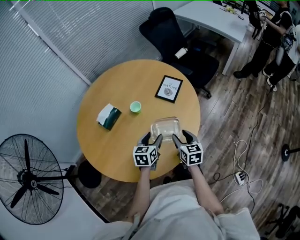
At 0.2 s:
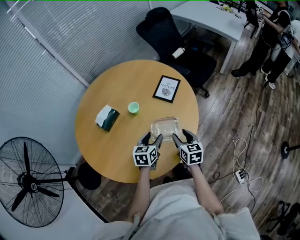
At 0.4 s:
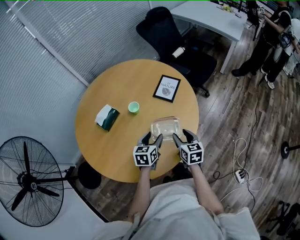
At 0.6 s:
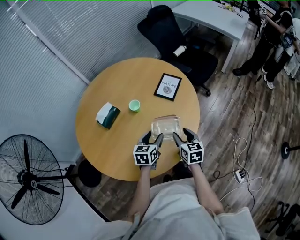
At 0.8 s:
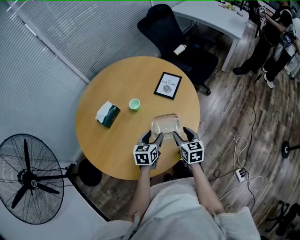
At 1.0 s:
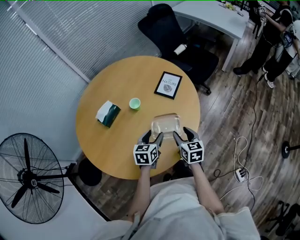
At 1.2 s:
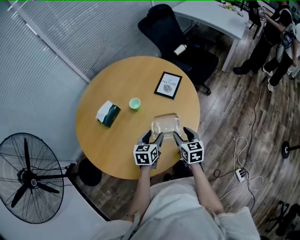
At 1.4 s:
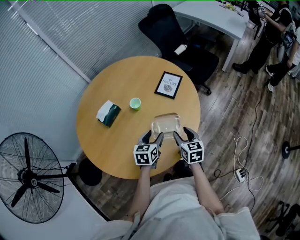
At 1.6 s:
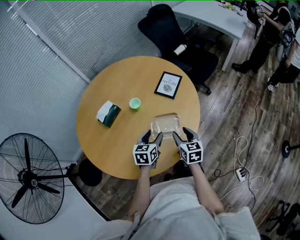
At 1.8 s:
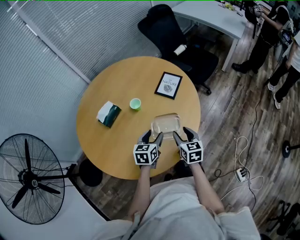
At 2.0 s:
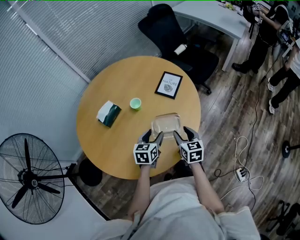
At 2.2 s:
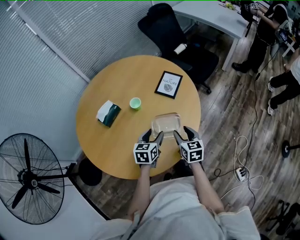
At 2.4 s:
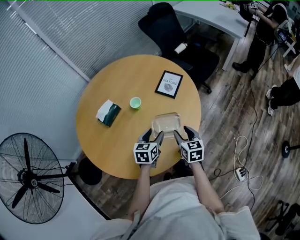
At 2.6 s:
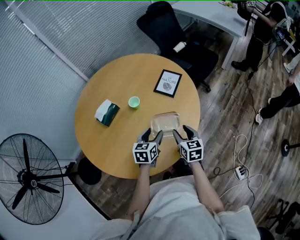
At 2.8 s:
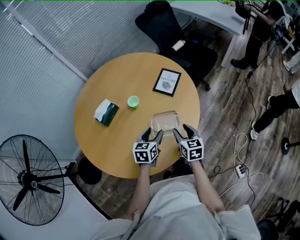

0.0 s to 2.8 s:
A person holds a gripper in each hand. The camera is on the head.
0.0 to 2.8 s: Both grippers stay put.

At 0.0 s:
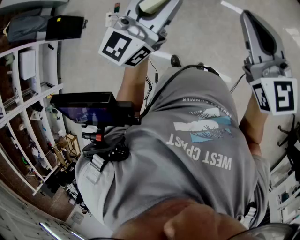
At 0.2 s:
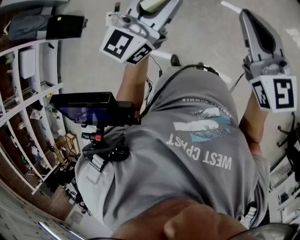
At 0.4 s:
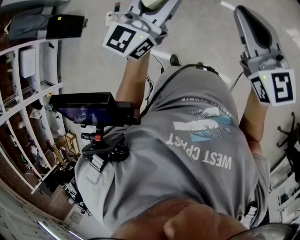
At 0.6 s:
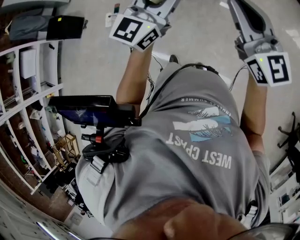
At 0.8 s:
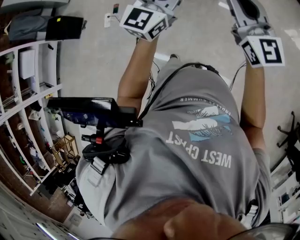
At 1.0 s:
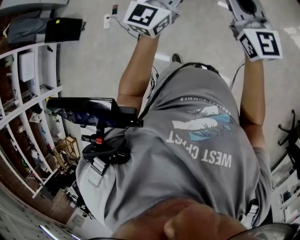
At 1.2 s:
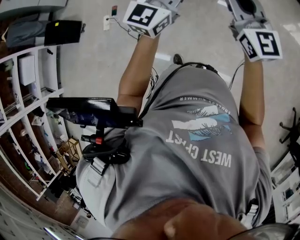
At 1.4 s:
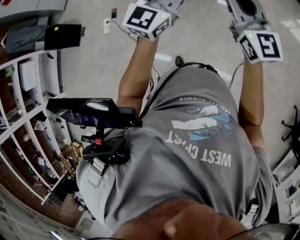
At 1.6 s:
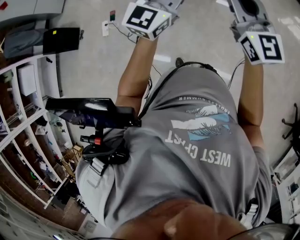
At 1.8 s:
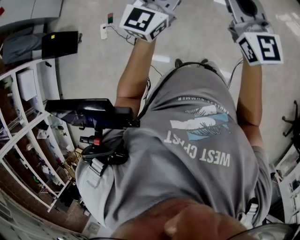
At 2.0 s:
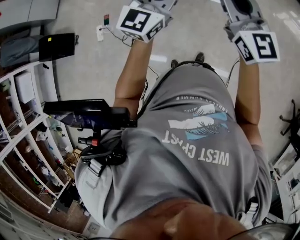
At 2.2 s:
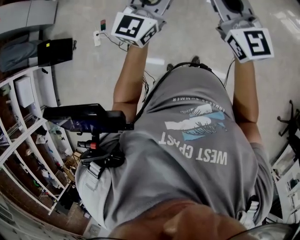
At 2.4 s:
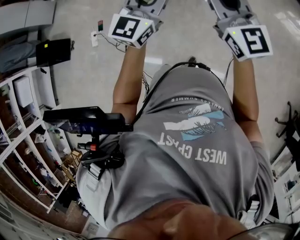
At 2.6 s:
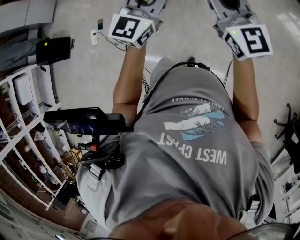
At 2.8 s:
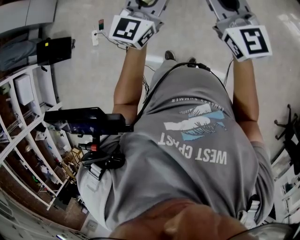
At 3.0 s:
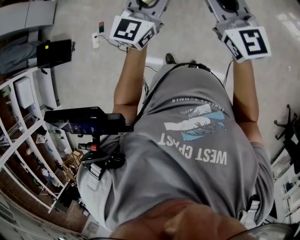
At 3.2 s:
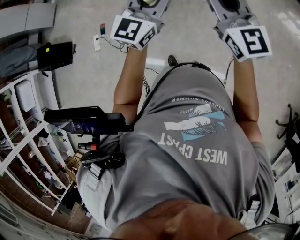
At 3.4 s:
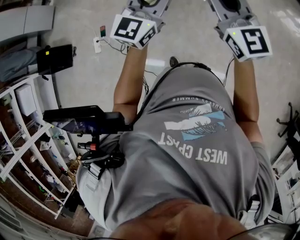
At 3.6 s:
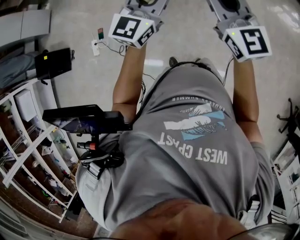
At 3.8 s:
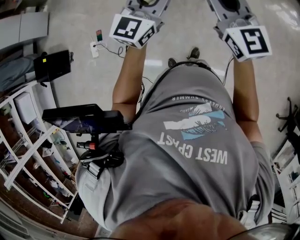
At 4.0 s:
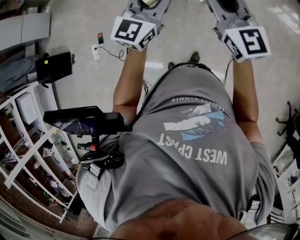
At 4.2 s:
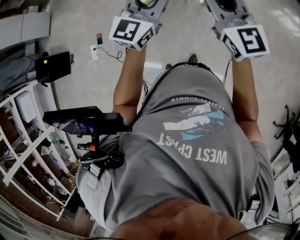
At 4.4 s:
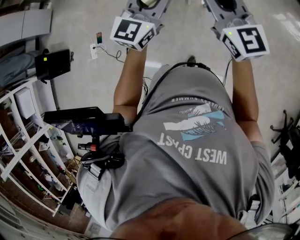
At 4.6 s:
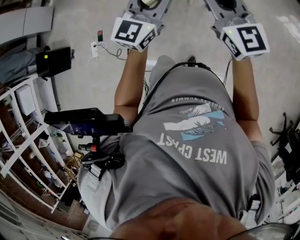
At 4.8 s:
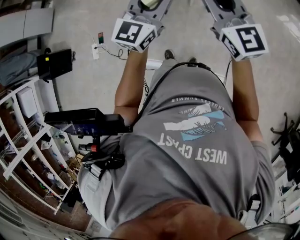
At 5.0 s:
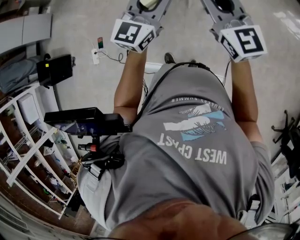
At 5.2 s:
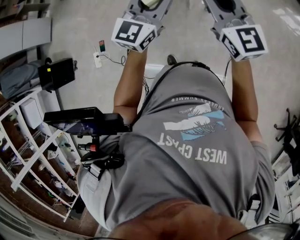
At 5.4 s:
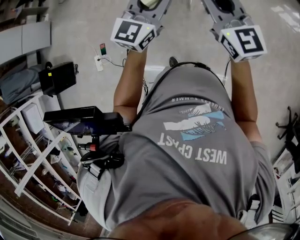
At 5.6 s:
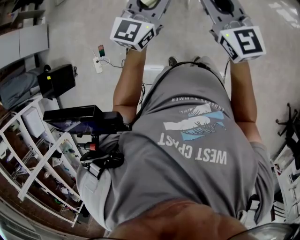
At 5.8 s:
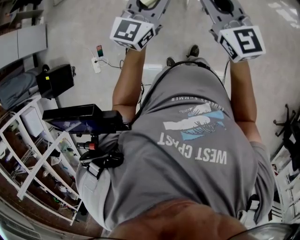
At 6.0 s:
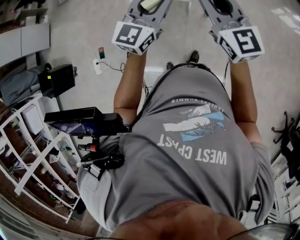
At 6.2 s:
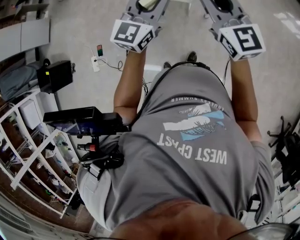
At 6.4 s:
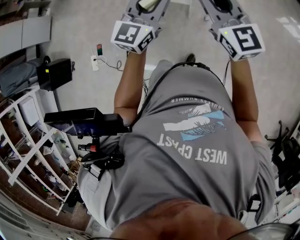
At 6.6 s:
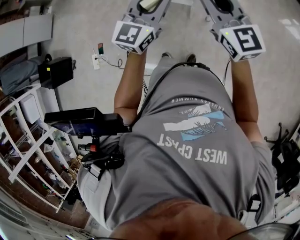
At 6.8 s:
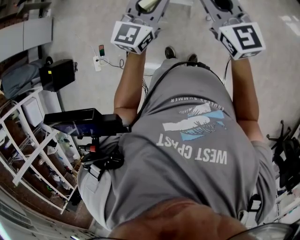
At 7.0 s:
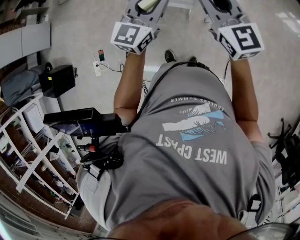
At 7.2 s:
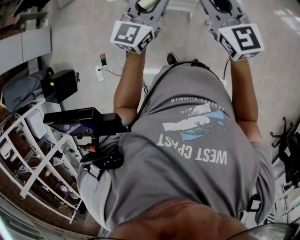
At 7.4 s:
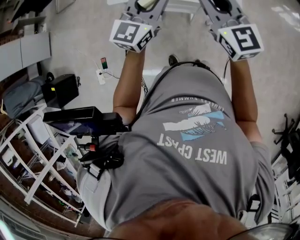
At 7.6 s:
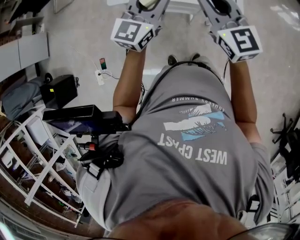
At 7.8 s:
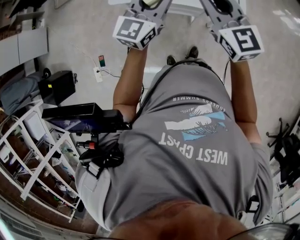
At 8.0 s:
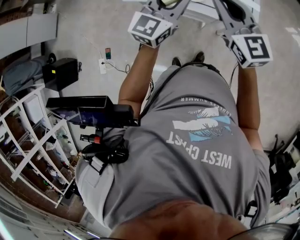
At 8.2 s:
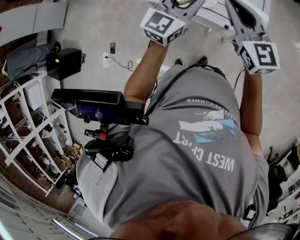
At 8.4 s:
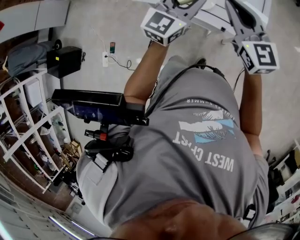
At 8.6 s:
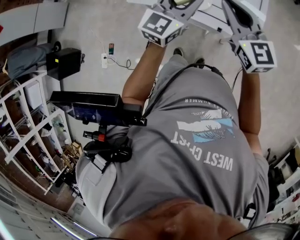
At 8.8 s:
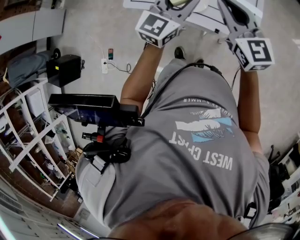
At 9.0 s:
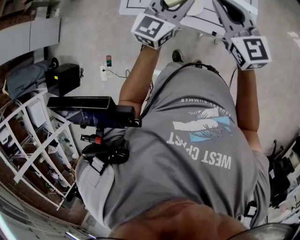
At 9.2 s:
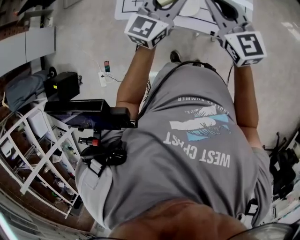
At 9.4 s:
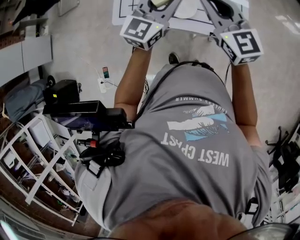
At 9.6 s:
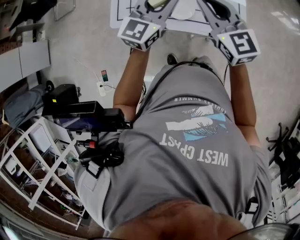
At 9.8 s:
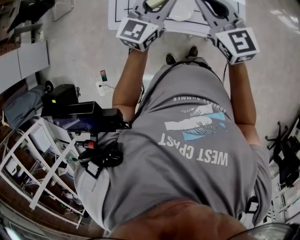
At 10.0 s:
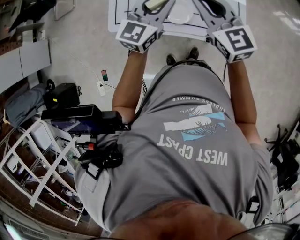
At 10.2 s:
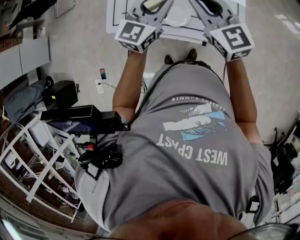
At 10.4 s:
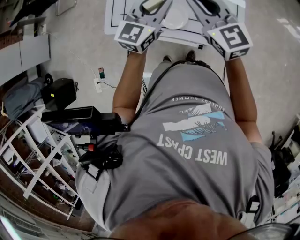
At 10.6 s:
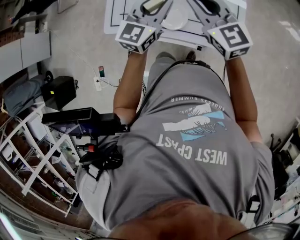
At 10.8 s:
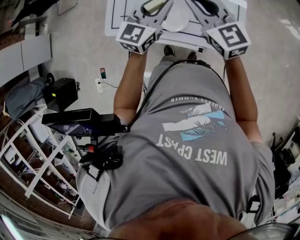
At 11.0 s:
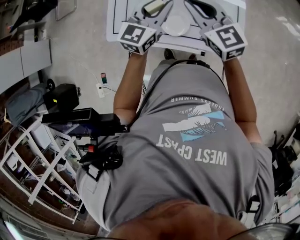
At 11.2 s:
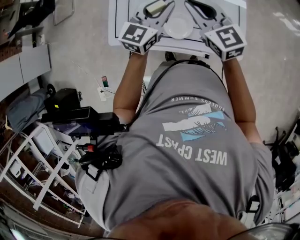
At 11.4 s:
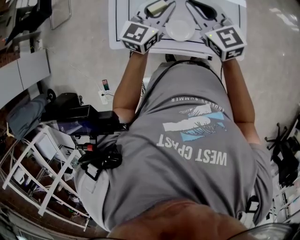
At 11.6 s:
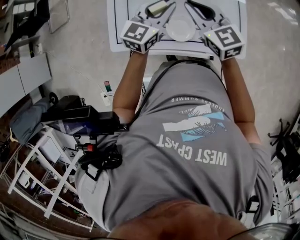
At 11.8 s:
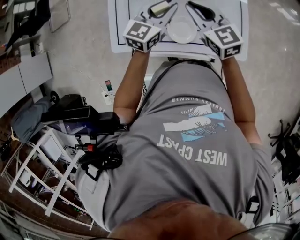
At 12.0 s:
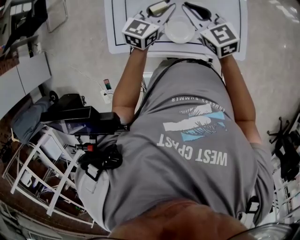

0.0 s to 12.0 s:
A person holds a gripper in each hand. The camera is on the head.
0.0 to 1.6 s: The right gripper shifts about 15 cm forward and to the left. Meanwhile the left gripper is displaced forward and downward by some 15 cm.
1.6 to 3.0 s: The right gripper shifts approximately 15 cm forward. The left gripper heads forward and to the right, covering approximately 15 cm.
3.0 to 4.4 s: Both grippers travel together forward, roughly 15 cm.
4.4 to 6.0 s: Both grippers move forward, some 15 cm.
6.0 to 7.6 s: The two grippers go roughly 15 cm forward.
7.6 to 9.0 s: The left gripper goes roughly 15 cm forward and to the right. Meanwhile the right gripper travels forward by about 10 cm.
9.0 to 10.4 s: Both grippers travel together forward, approximately 10 cm.
10.4 to 12.0 s: Both grippers travel together downward and forward, about 15 cm.

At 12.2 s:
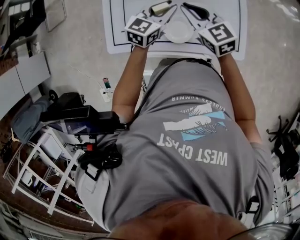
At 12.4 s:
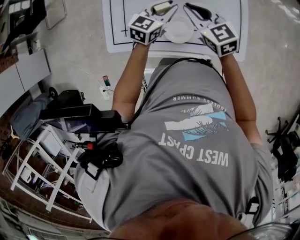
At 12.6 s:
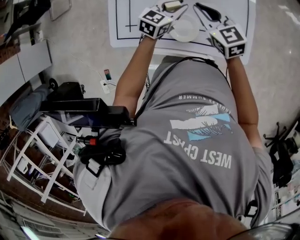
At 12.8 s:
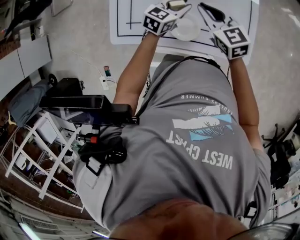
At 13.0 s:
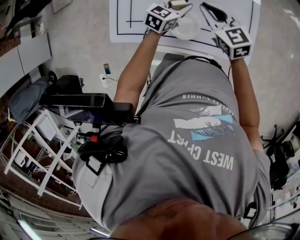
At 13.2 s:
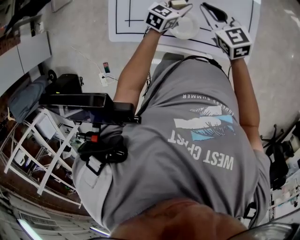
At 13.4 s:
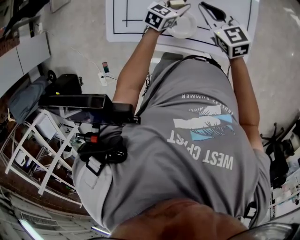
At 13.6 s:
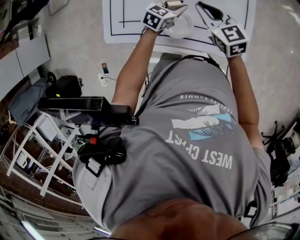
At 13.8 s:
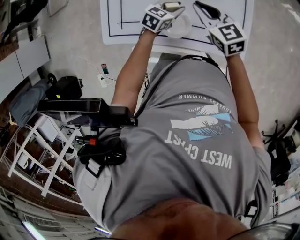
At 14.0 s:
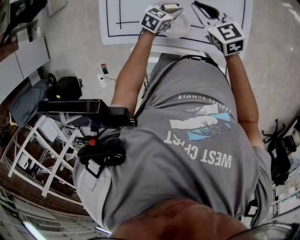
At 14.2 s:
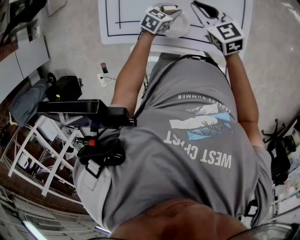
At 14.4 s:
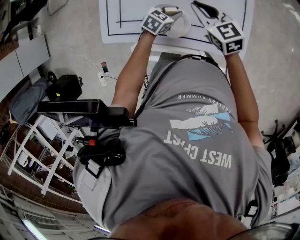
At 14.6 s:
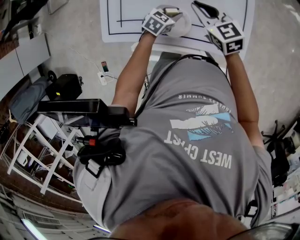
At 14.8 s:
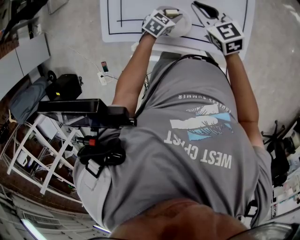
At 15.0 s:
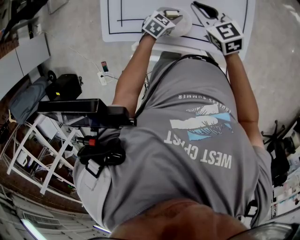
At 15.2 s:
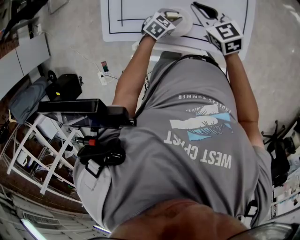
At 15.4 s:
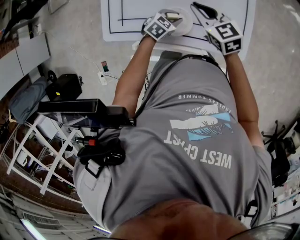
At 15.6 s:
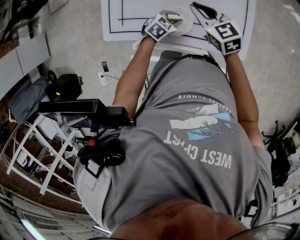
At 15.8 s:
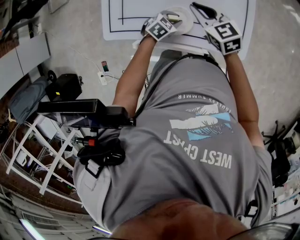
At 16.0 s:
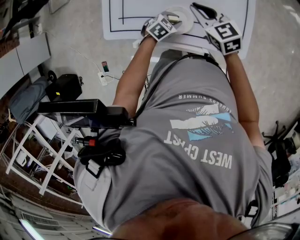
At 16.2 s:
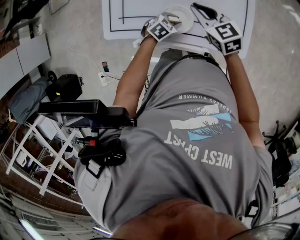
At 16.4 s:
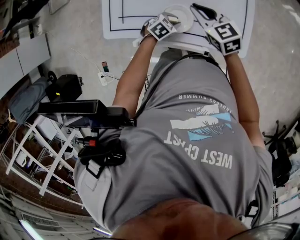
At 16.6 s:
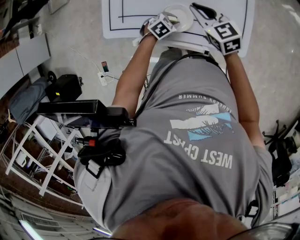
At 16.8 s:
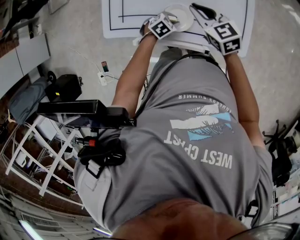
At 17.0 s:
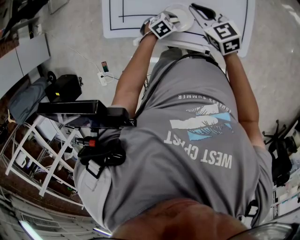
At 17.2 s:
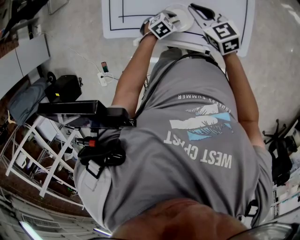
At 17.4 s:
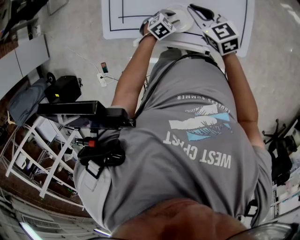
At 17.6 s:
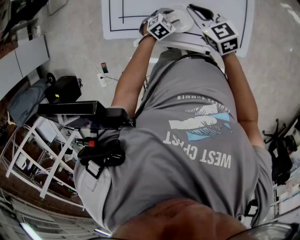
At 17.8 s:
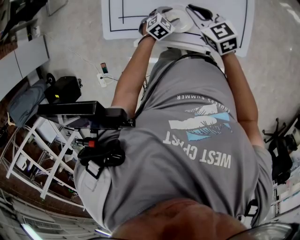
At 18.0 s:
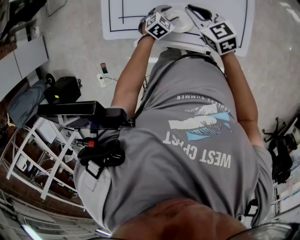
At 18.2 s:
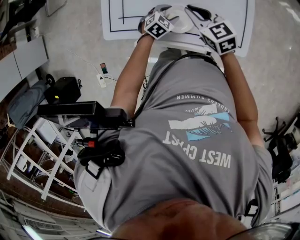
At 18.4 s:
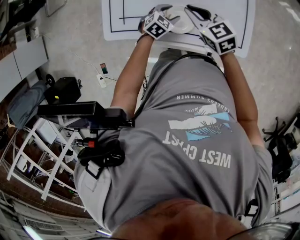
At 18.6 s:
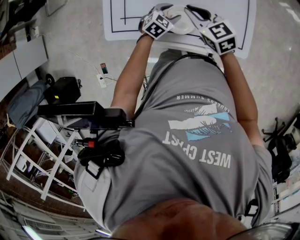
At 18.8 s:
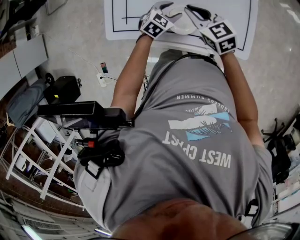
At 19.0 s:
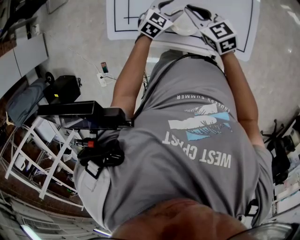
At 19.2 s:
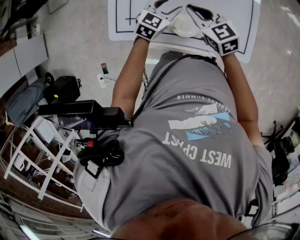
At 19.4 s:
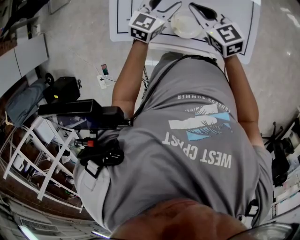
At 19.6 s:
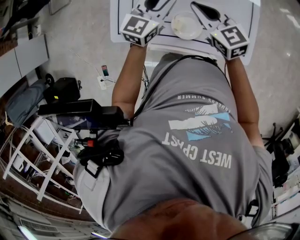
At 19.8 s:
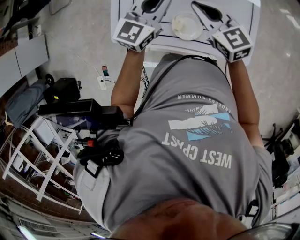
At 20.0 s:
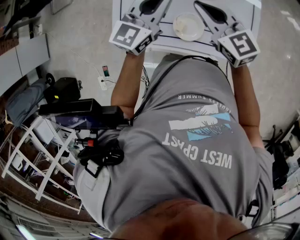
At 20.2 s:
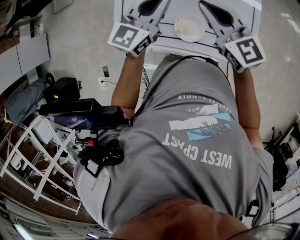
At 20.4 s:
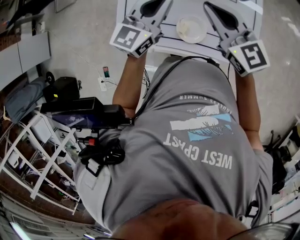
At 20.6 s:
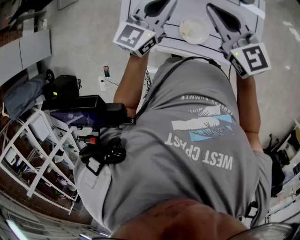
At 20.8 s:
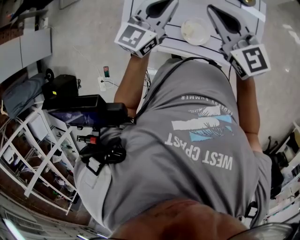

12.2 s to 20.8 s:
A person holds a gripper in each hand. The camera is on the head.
12.2 to 13.6 s: The right gripper changes place by roughly 5 cm, while the left gripper is displaced downward by approximately 10 cm.
13.6 to 15.0 s: The left gripper shifts some 10 cm downward and backward.
15.0 to 16.6 s: The left gripper shifts about 5 cm backward.
16.6 to 18.0 s: The left gripper opens up.
18.0 to 19.4 s: The left gripper moves upward, about 20 cm, and tips its fingers upward by some 30 degrees. Meanwhile the right gripper ends up approximately 5 cm from where it was.
19.4 to 20.8 s: Both grippers move upward, about 15 cm. The left gripper closes up.
